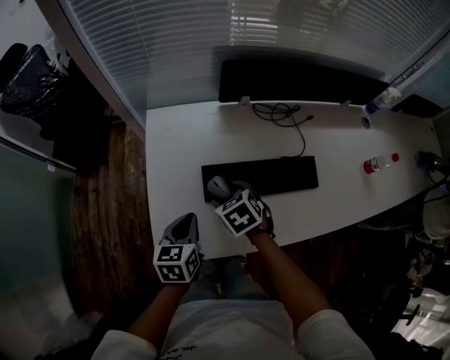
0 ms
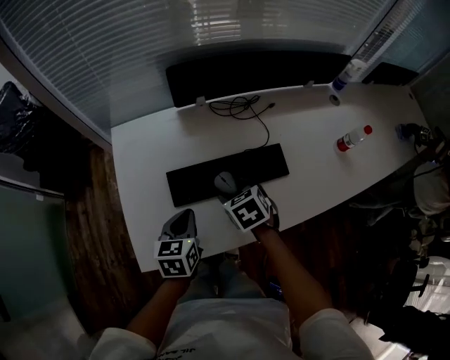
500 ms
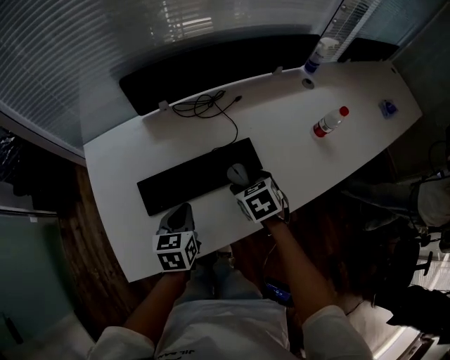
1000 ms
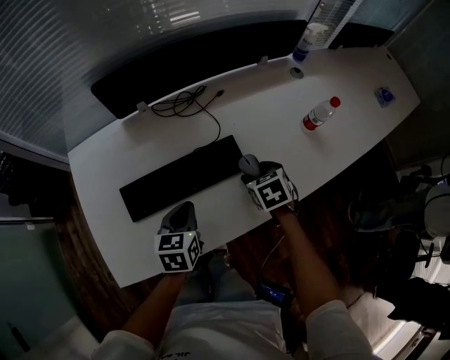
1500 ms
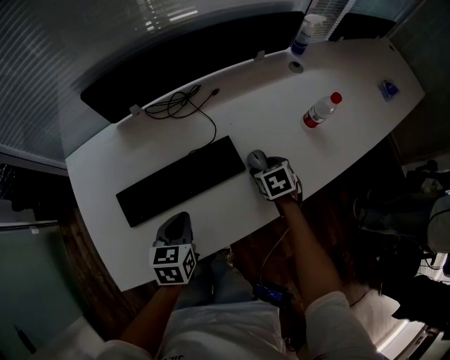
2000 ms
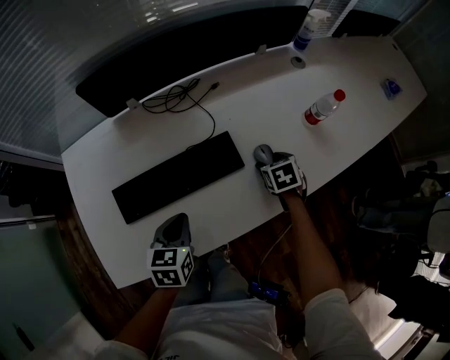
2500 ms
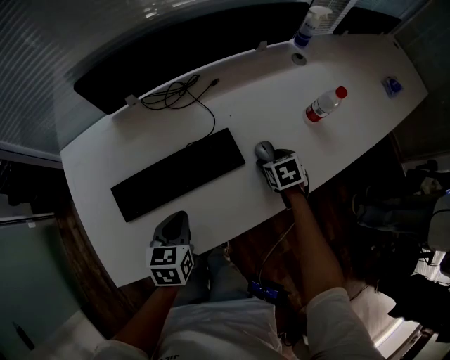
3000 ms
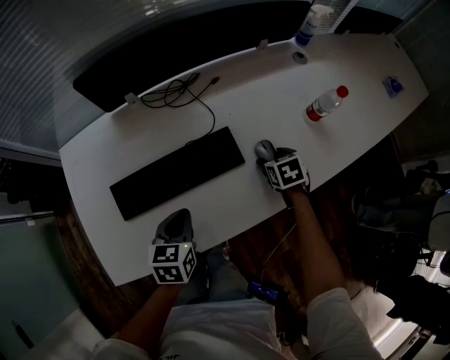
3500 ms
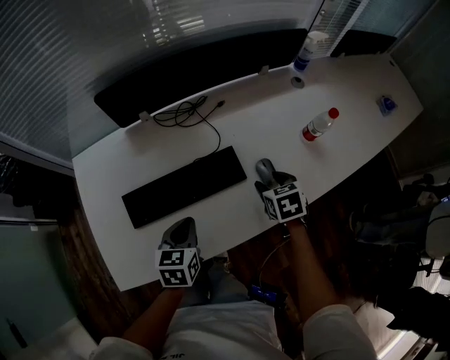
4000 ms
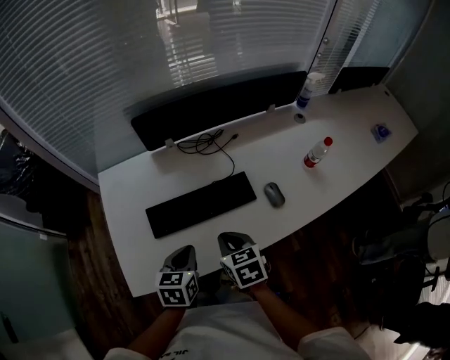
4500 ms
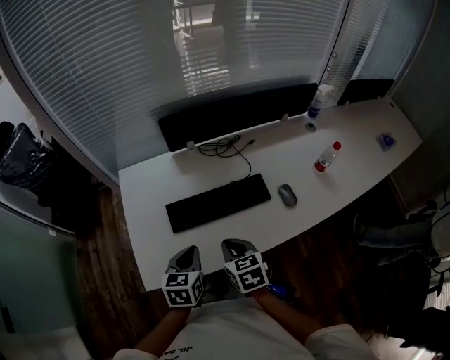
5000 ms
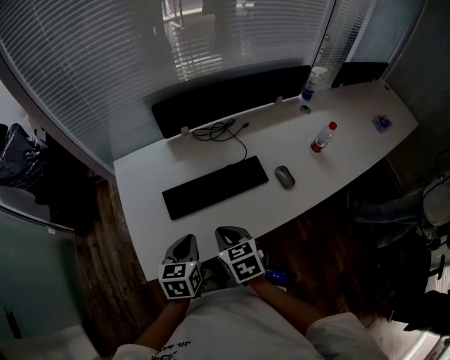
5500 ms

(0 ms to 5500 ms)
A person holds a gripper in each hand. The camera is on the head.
0 ms - 2000 ms: The right gripper ends up roughly 50 cm from where it was, and changes its angle by some 30 degrees, while the left gripper moves roughly 25 cm, and rotates approximately 20 degrees.
2000 ms - 3500 ms: There are only small adjustments of the grippers.
3500 ms - 5500 ms: The right gripper is displaced to the left, upward and backward by roughly 40 cm, turns by roughly 20 degrees, and closes its fingers, while the left gripper is displaced to the left, upward and backward by some 20 cm.

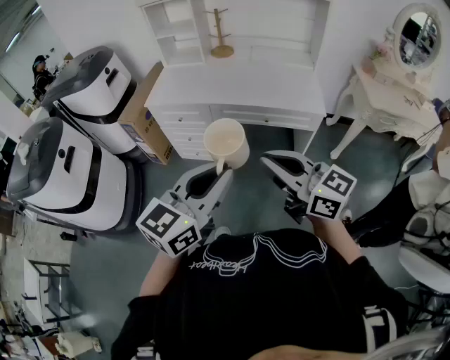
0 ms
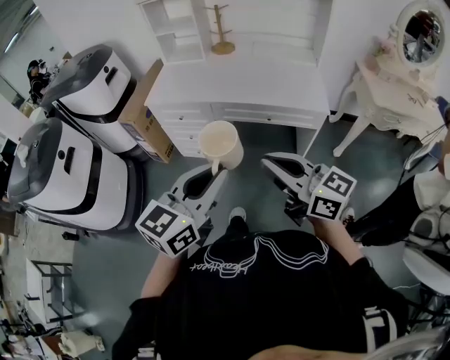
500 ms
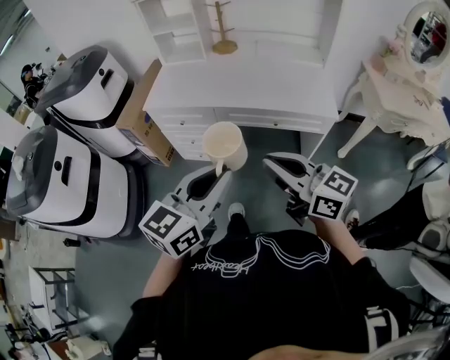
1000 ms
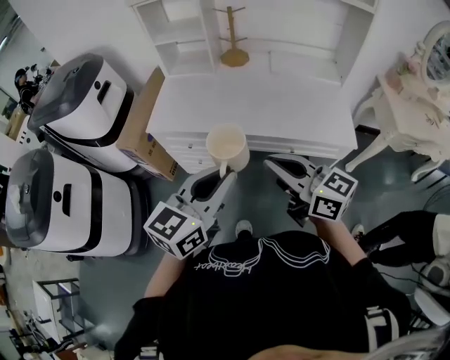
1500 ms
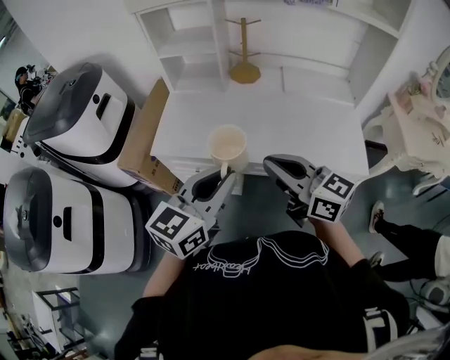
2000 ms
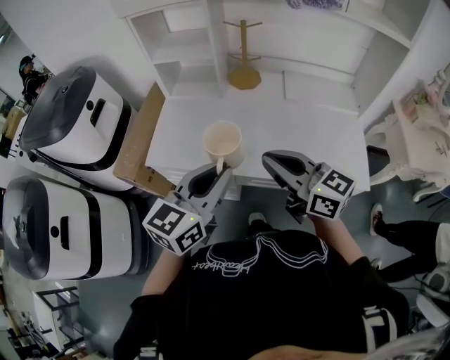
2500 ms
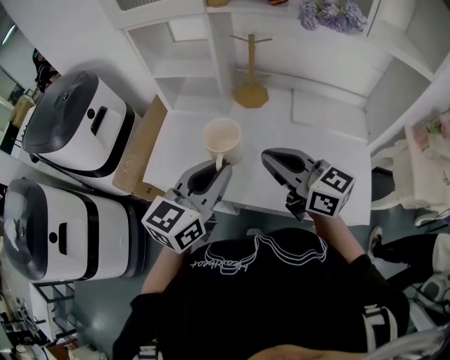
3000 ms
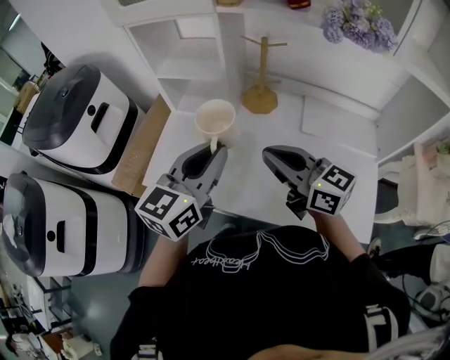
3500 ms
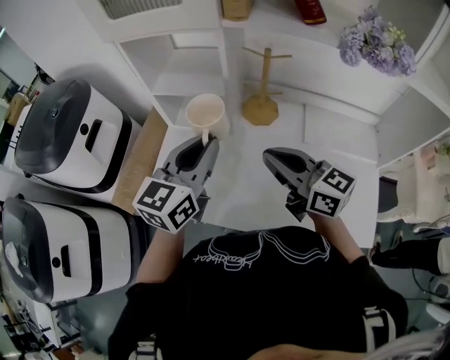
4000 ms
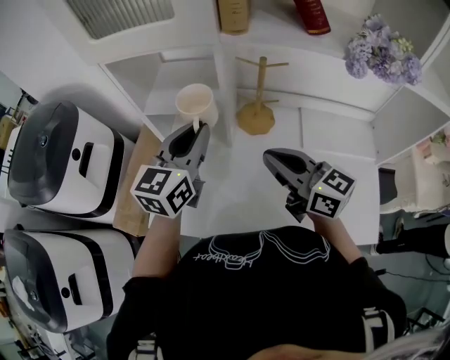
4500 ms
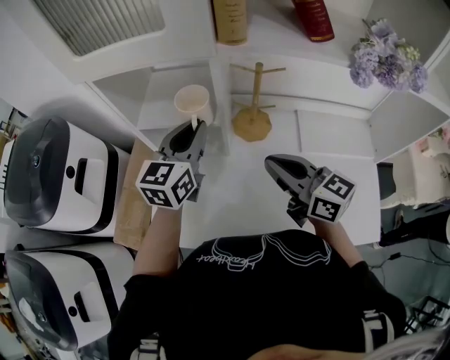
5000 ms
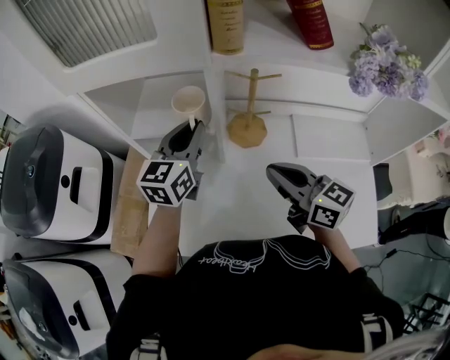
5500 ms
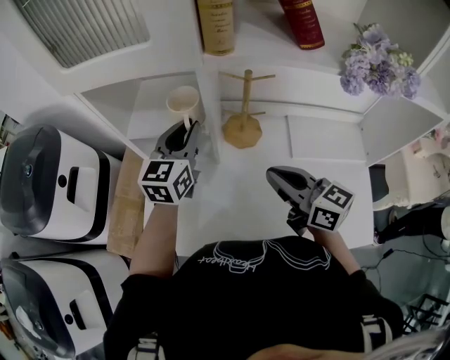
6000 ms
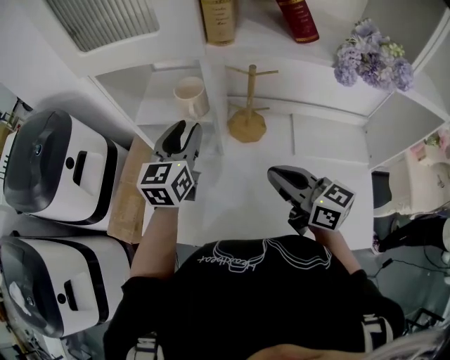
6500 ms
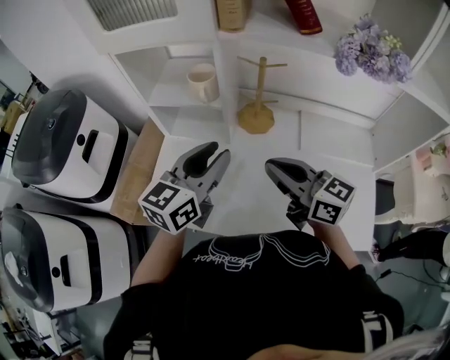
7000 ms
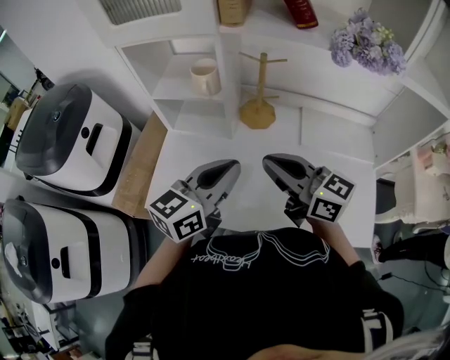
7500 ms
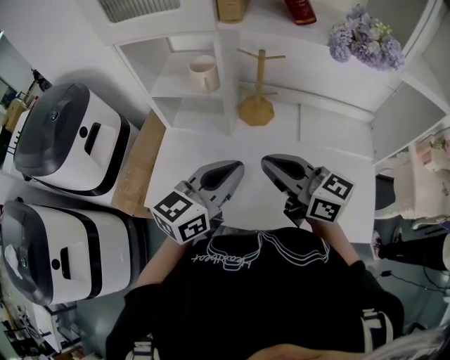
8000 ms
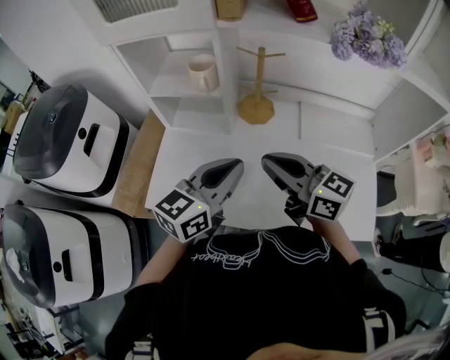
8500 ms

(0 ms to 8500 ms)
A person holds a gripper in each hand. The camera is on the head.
0 ms - 2000 ms: Both grippers travel together forward, approximately 40 cm.
2000 ms - 4000 ms: Both grippers travel together forward, about 35 cm.
4000 ms - 6500 ms: The left gripper goes approximately 15 cm forward, and opens up.
6500 ms - 8500 ms: The left gripper shifts roughly 20 cm backward, turns by roughly 30 degrees, and closes, while the right gripper moves backward, about 5 cm.

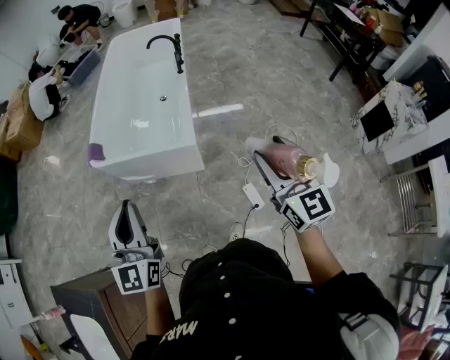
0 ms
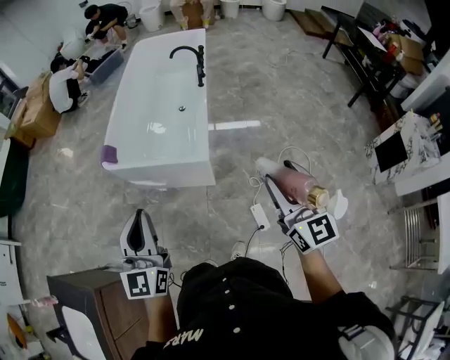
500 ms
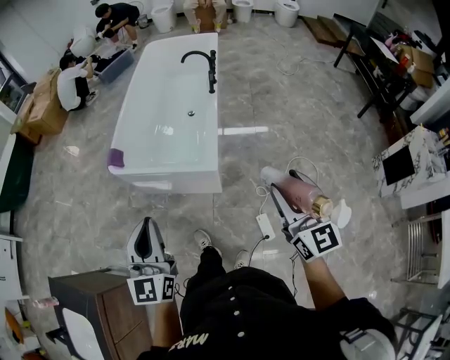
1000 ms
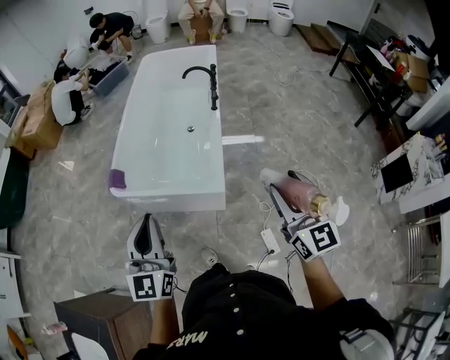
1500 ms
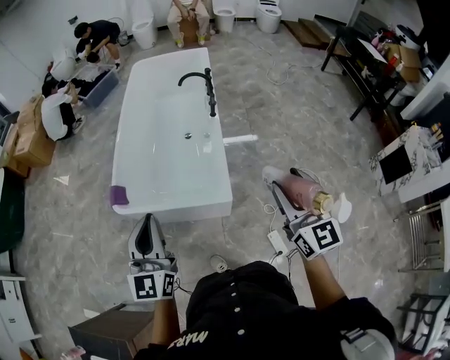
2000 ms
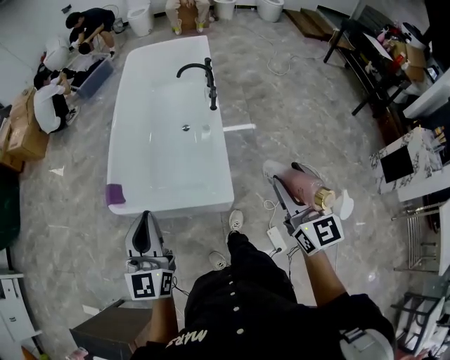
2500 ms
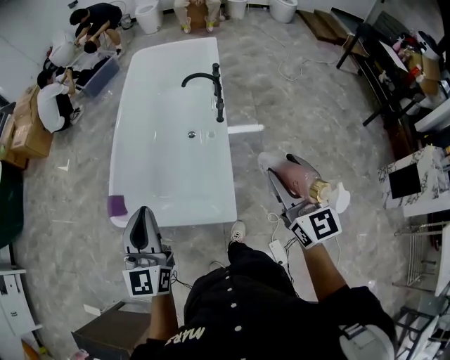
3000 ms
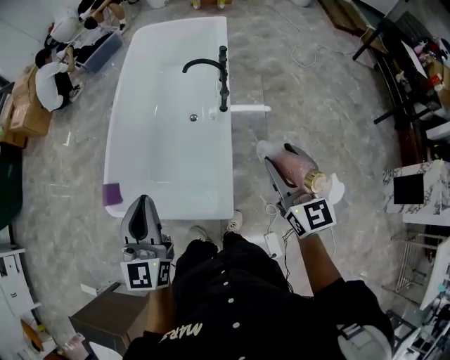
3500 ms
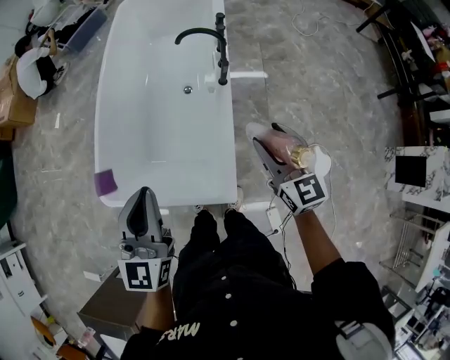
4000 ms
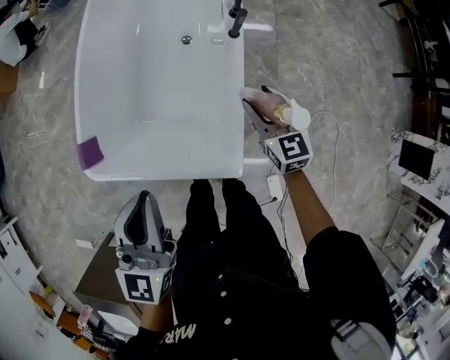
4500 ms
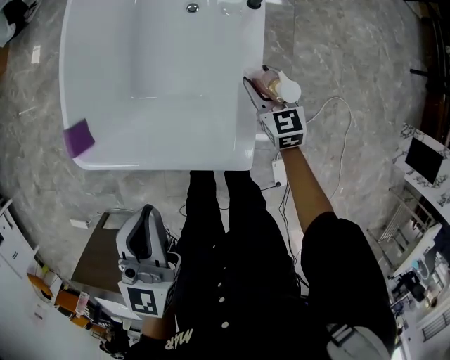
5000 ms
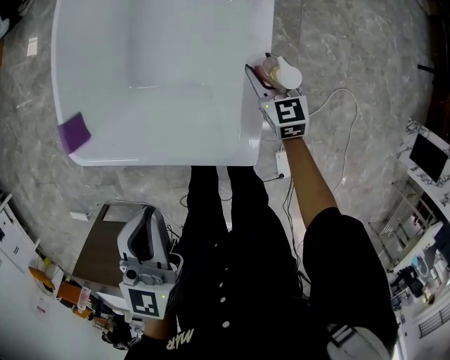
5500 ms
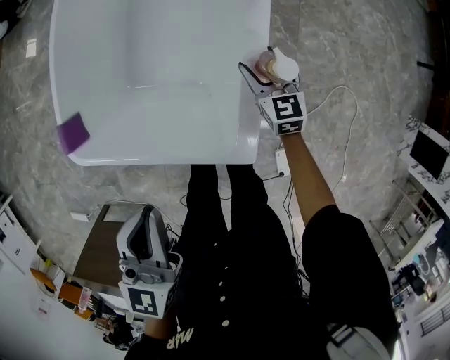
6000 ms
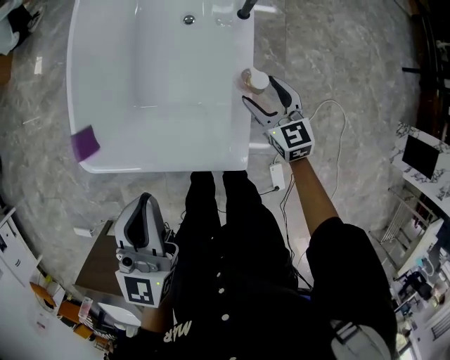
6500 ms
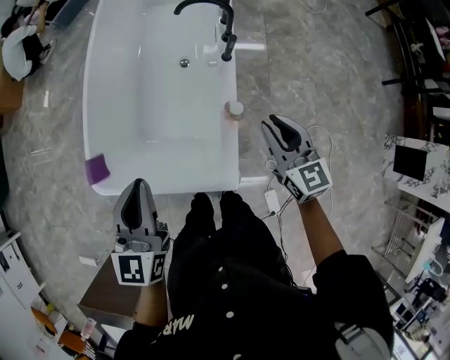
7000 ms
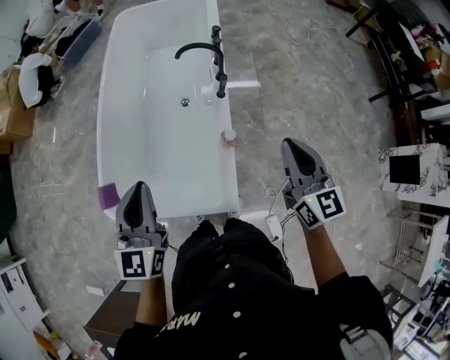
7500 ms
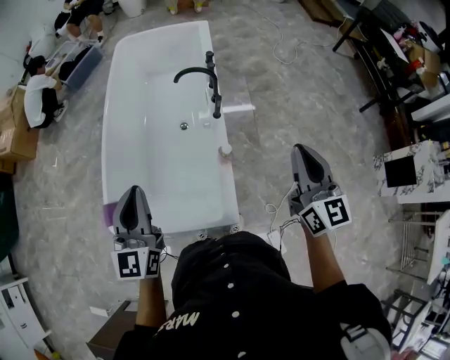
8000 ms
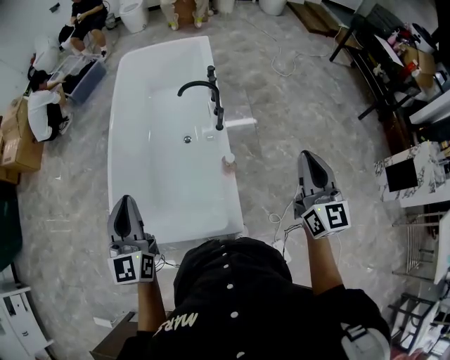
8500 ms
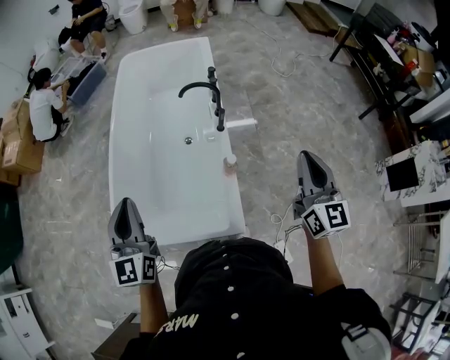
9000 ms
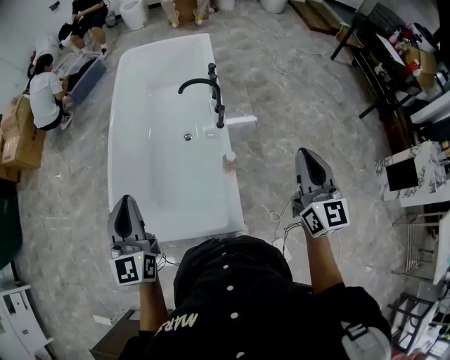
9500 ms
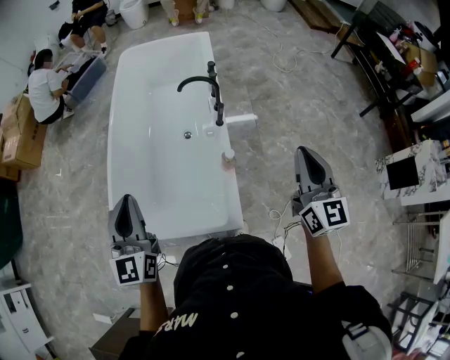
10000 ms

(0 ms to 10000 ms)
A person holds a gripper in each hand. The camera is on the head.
0 ms - 2000 ms: The two grippers go approximately 20 cm forward.
2000 ms - 4000 ms: The left gripper travels forward by about 25 cm. The right gripper moves forward and downward, approximately 35 cm.
4000 ms - 6000 ms: The right gripper shifts approximately 35 cm downward. The left gripper shifts approximately 15 cm downward.
6000 ms - 8000 ms: The left gripper is displaced upward by roughly 20 cm, and changes its angle by about 20 degrees. The right gripper heads upward, covering some 50 cm, swivels some 40 degrees, and closes up.
8000 ms - 10000 ms: The grippers make only small movements.

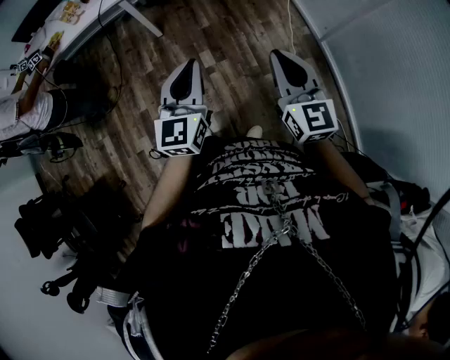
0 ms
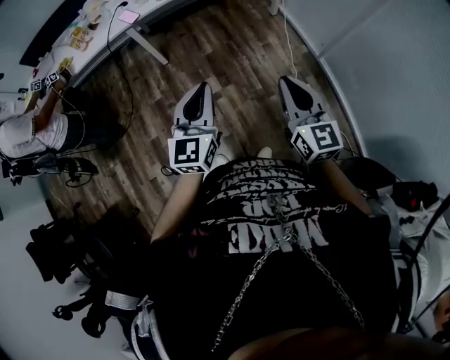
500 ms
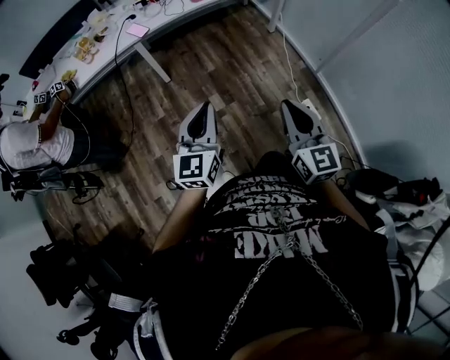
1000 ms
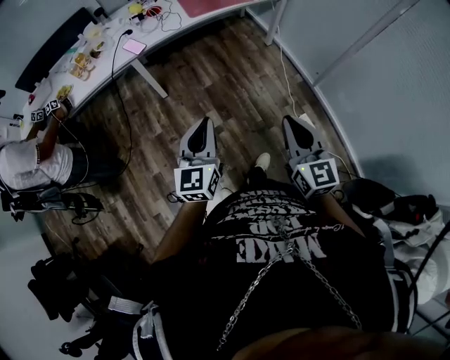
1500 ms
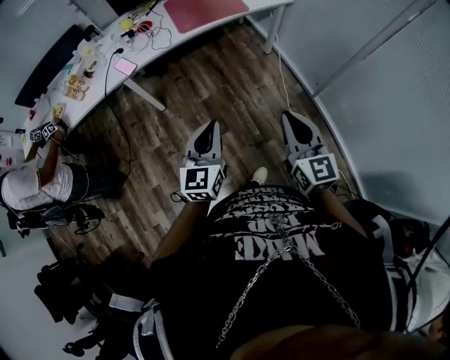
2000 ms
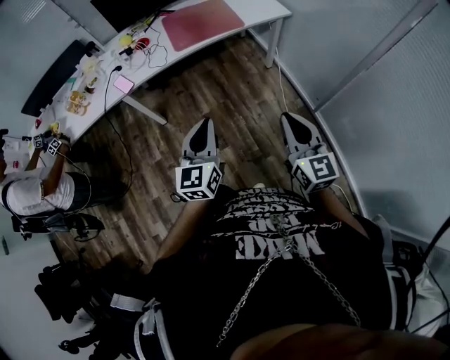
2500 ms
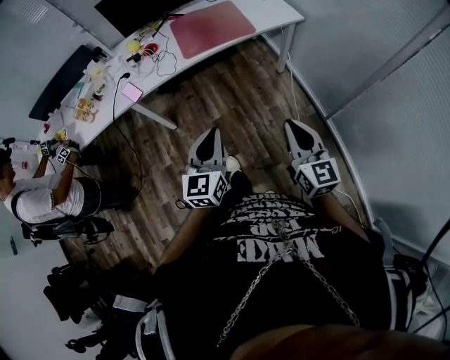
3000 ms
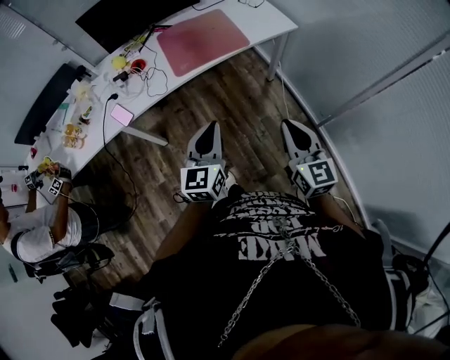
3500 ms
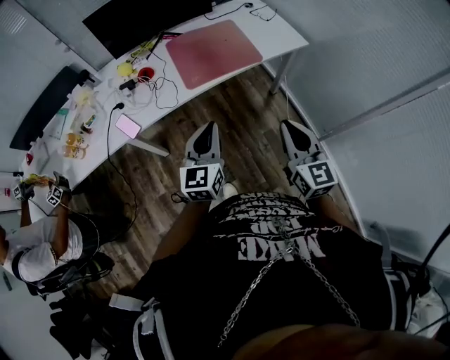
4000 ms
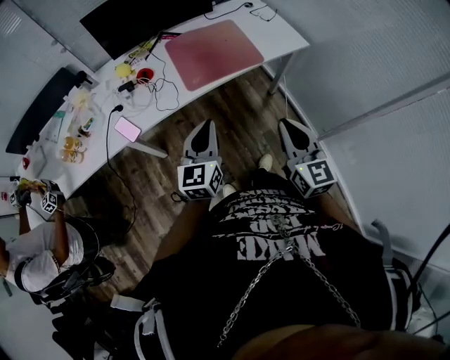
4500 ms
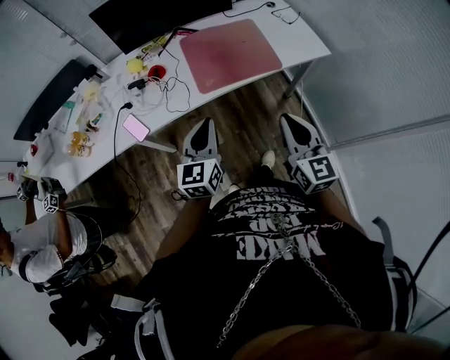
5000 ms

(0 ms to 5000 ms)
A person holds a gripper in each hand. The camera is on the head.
0 ms - 2500 ms: Both grippers travel together forward, some 20 cm.
2500 ms - 5000 ms: The pair of grippers is taken forward and to the left, some 40 cm.
